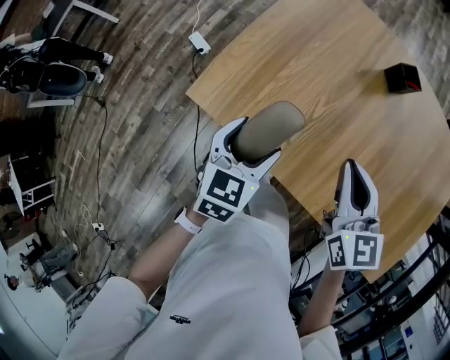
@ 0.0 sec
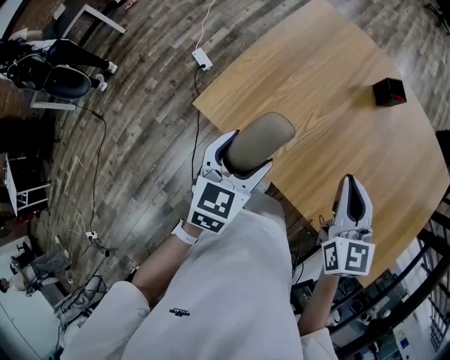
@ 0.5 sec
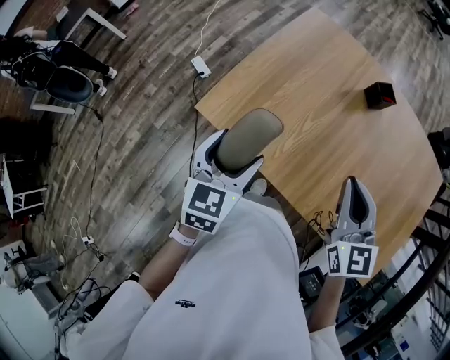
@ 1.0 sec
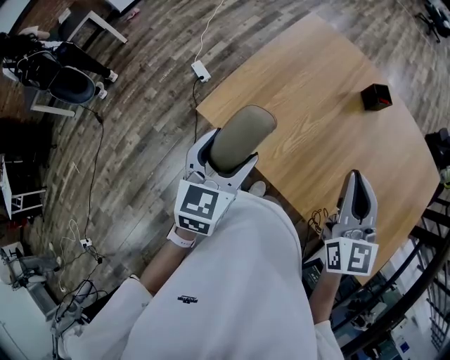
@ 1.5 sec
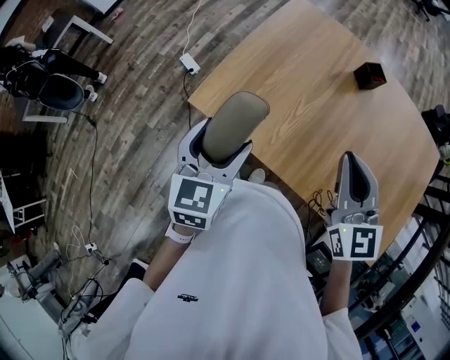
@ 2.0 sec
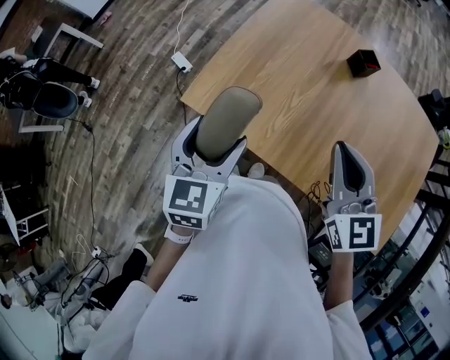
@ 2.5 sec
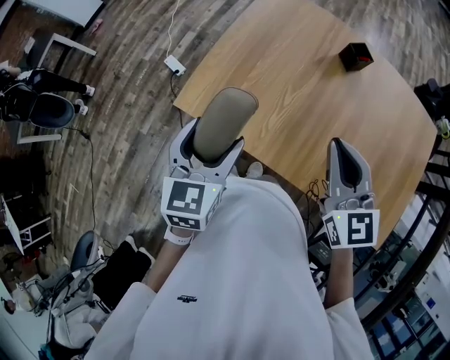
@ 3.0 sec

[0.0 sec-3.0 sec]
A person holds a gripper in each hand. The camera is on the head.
0.0 sec to 1.5 sec: The right gripper is displaced upward by roughly 10 cm. Meanwhile the left gripper moves upward and to the left, some 15 cm.
1.5 sec to 3.0 sec: The grippers make only small movements.

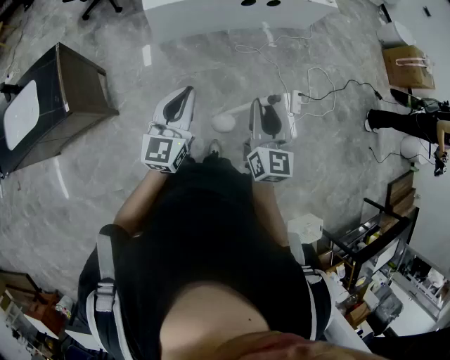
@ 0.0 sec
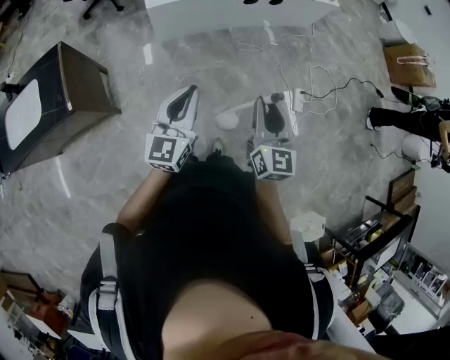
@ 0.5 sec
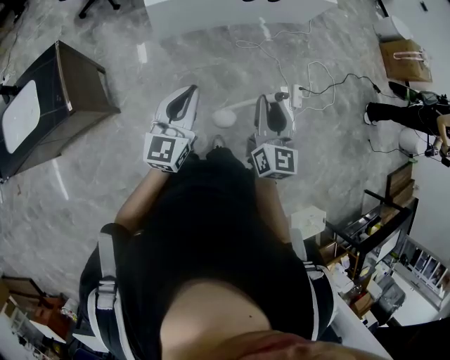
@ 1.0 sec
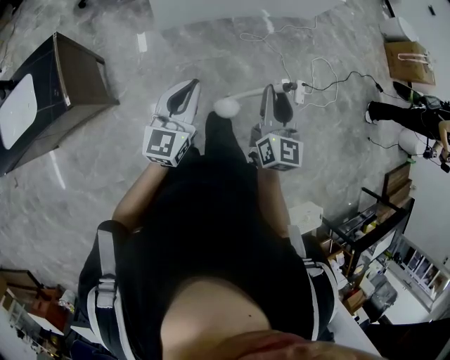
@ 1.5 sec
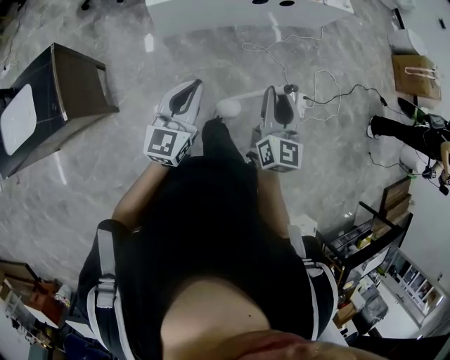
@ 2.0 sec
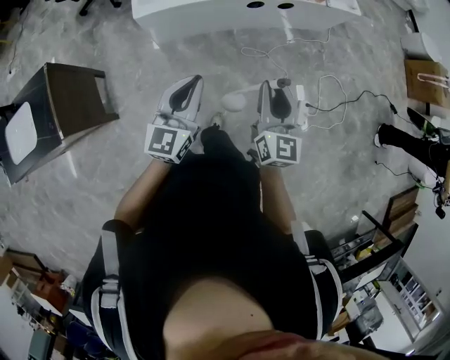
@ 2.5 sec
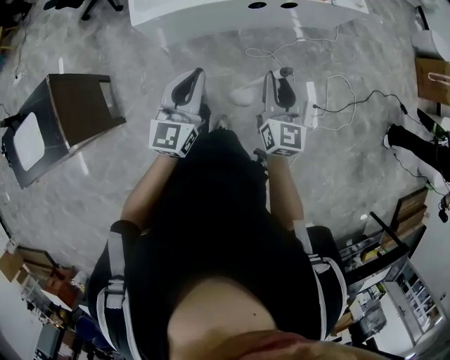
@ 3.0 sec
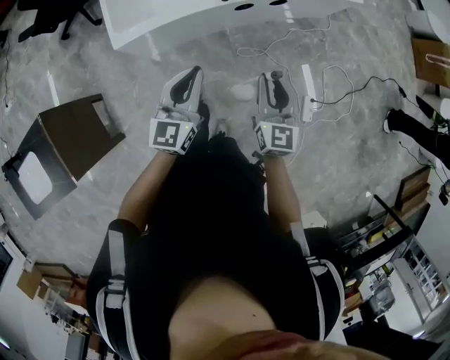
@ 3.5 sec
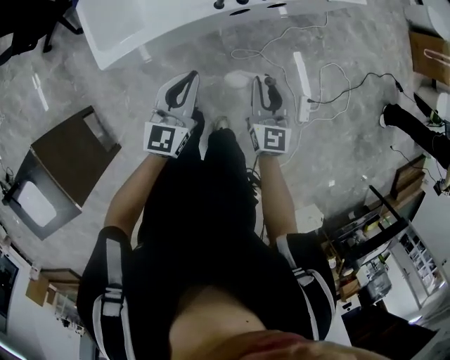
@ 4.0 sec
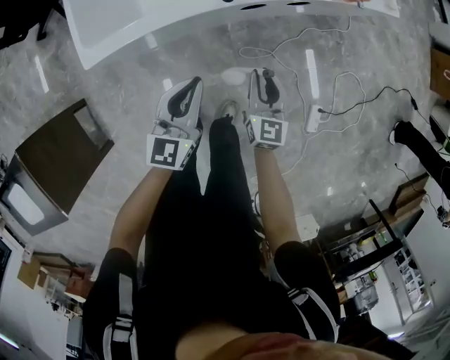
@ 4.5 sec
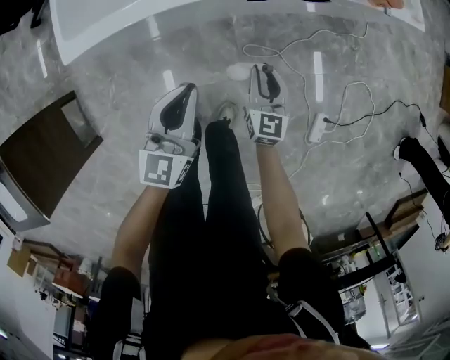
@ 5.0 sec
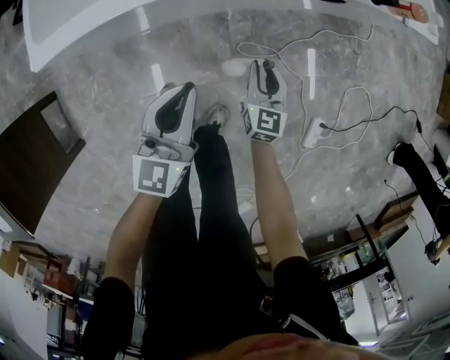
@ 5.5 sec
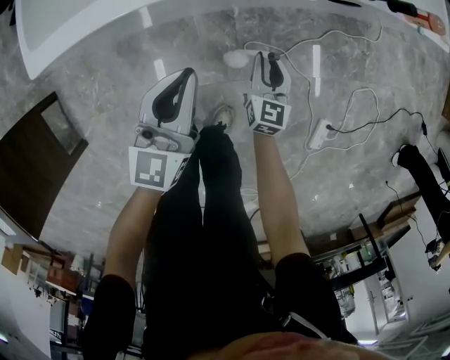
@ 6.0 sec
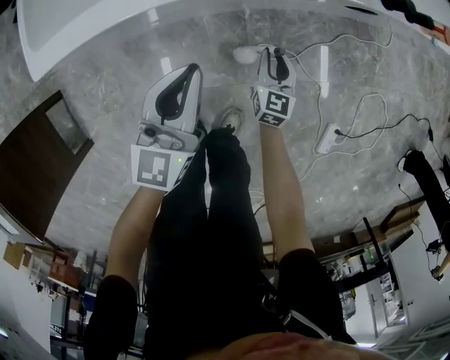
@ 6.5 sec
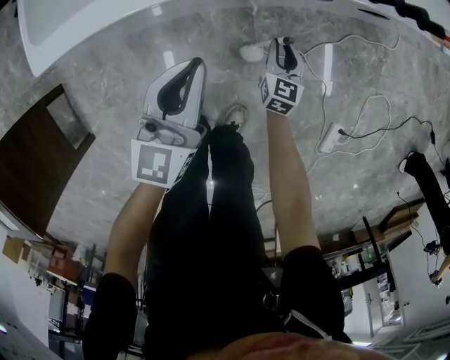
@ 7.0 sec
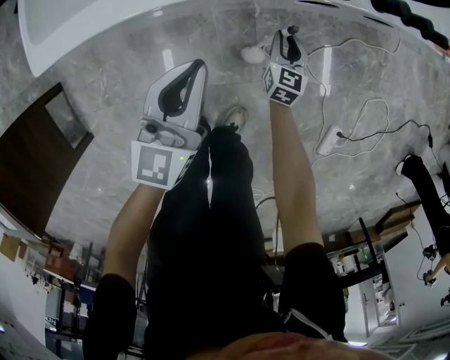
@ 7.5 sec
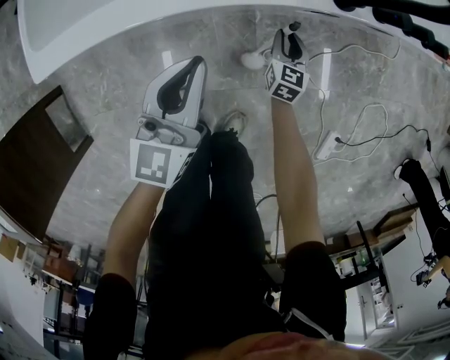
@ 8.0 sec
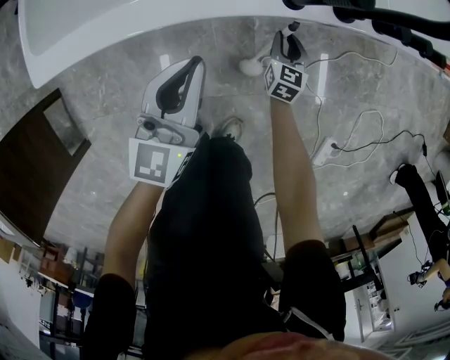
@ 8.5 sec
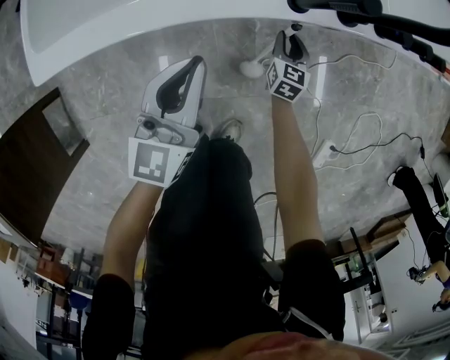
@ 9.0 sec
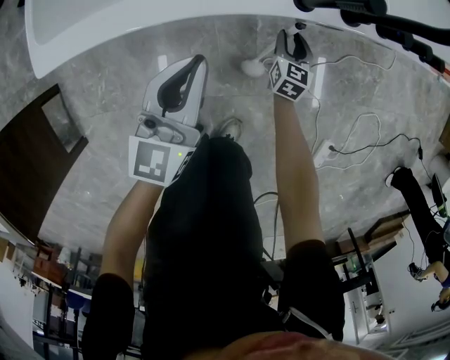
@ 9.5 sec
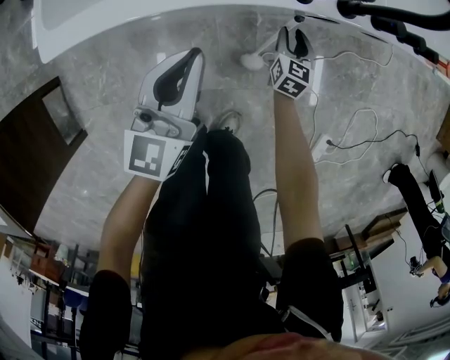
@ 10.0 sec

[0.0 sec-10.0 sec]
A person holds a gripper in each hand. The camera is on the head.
0.0 sec to 2.0 sec: Both grippers move forward, about 15 cm.
2.0 sec to 4.0 sec: The pair of grippers is taken forward, about 50 cm. The right gripper heads downward, covering roughly 15 cm.
4.0 sec to 6.0 sec: The two grippers go roughly 35 cm downward.
6.0 sec to 8.0 sec: The right gripper goes approximately 15 cm downward and forward, while the left gripper heads to the left and forward, covering approximately 10 cm.
8.0 sec to 10.0 sec: The grippers stay close to where they were, moving slightly.

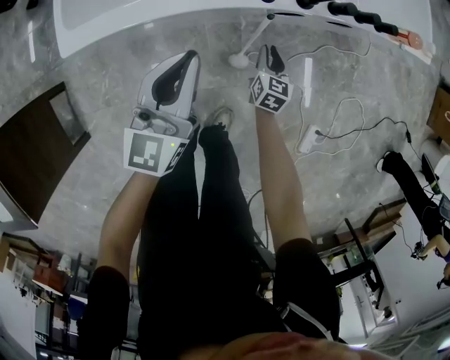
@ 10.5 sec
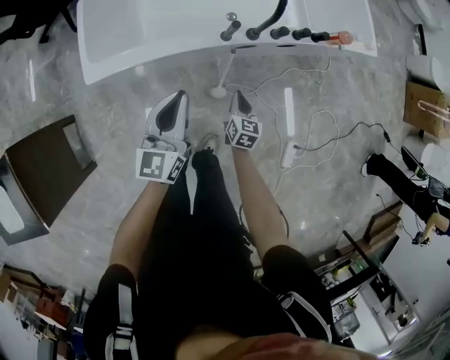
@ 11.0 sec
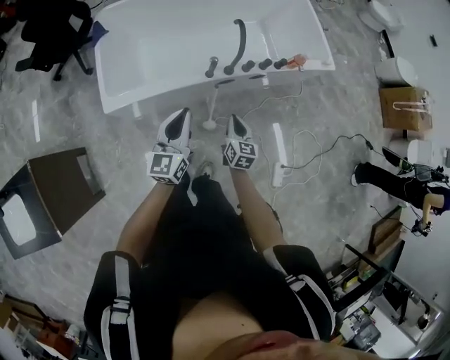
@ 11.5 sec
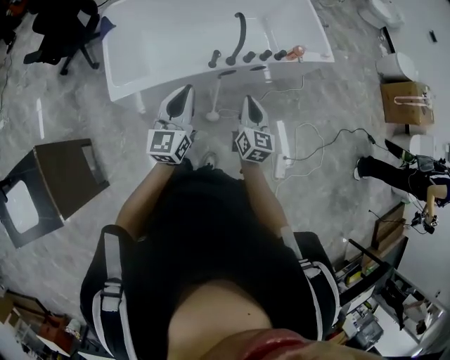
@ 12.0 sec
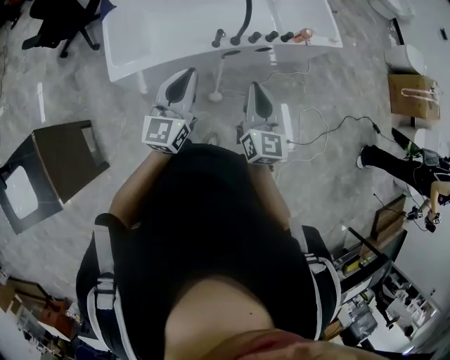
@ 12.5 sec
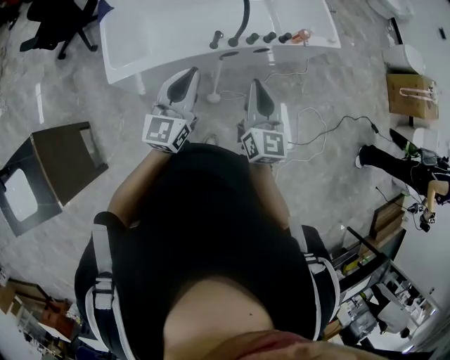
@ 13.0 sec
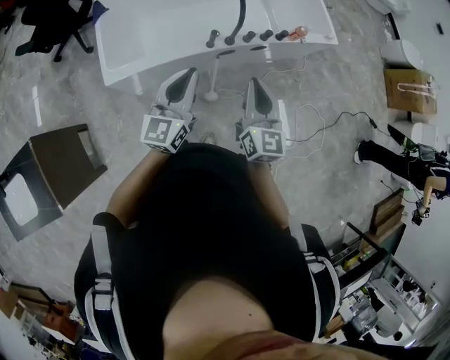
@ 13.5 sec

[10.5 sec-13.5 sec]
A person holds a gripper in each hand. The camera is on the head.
10.5 sec to 12.0 sec: The right gripper goes approximately 50 cm upward, and rotates some 20 degrees. Meanwhile the left gripper is displaced upward by roughly 30 cm.
12.0 sec to 13.5 sec: The right gripper goes roughly 10 cm upward.

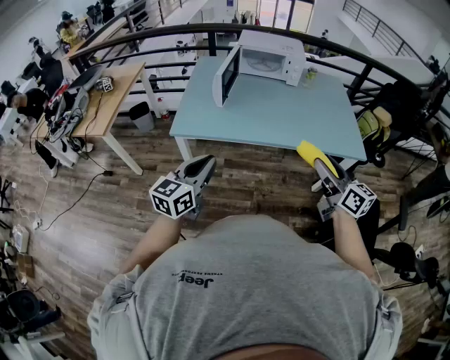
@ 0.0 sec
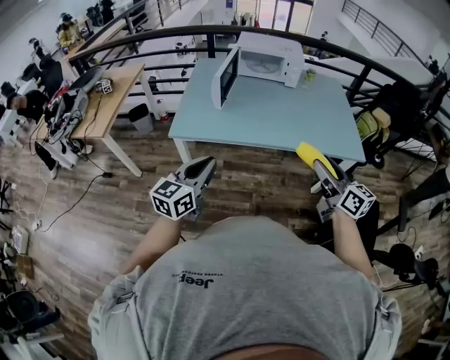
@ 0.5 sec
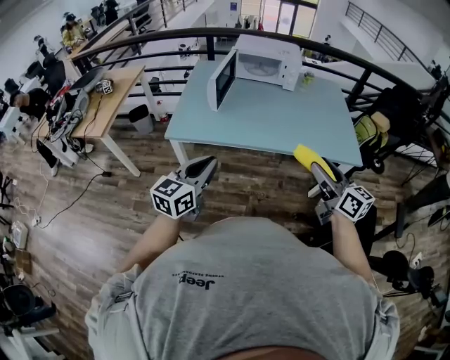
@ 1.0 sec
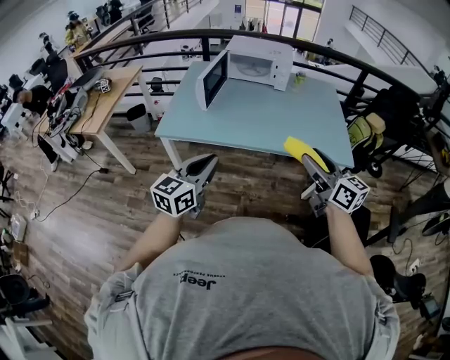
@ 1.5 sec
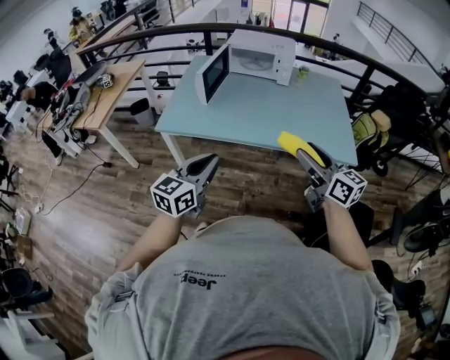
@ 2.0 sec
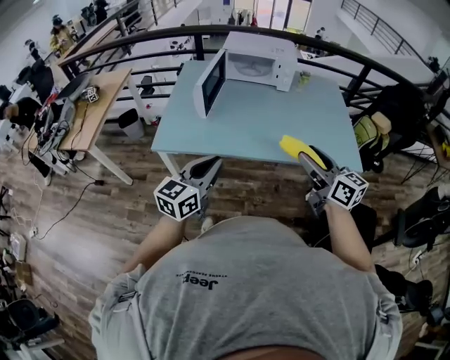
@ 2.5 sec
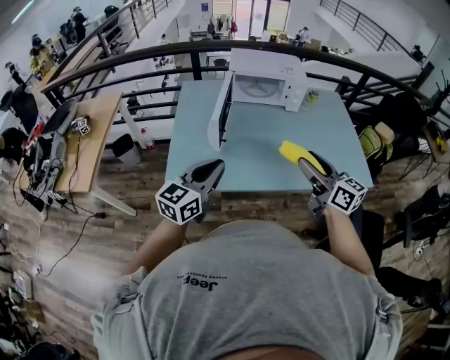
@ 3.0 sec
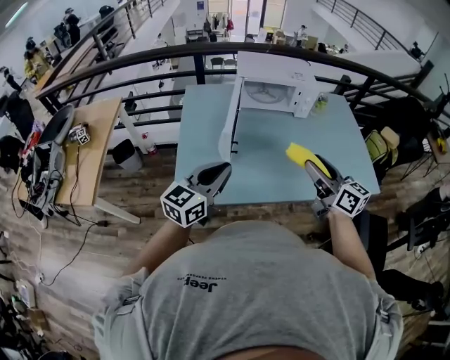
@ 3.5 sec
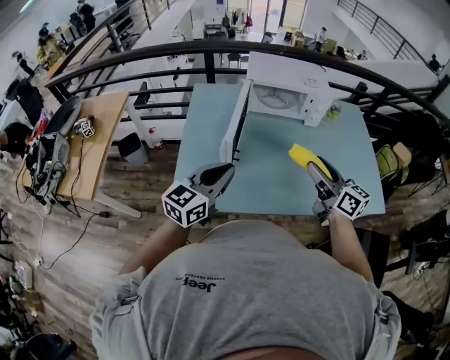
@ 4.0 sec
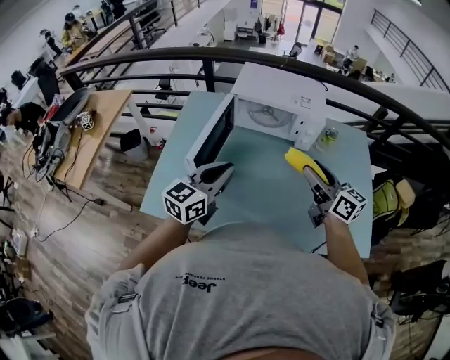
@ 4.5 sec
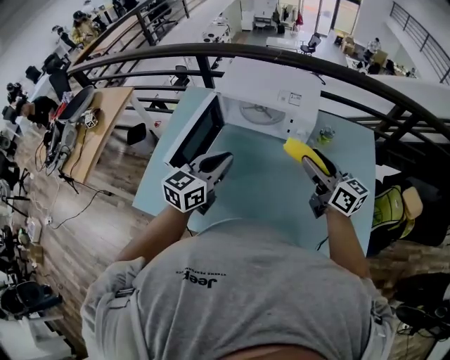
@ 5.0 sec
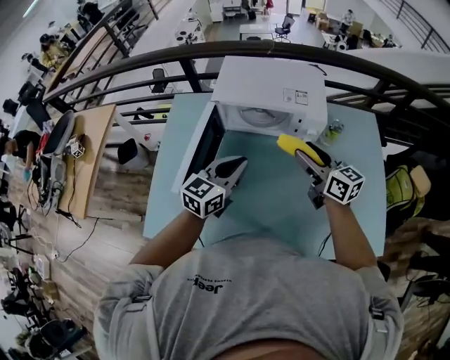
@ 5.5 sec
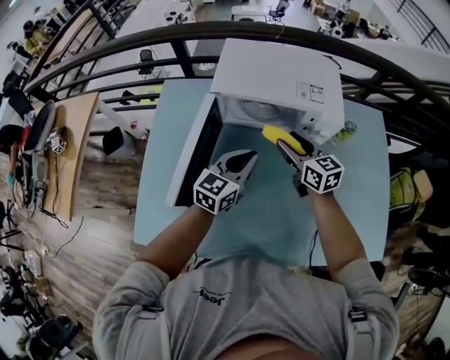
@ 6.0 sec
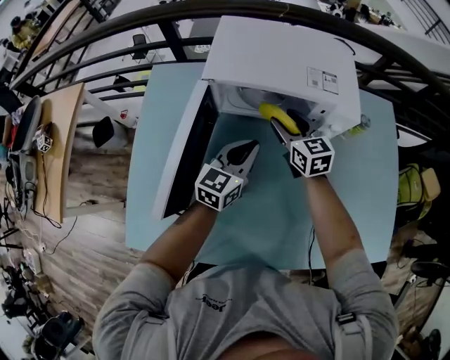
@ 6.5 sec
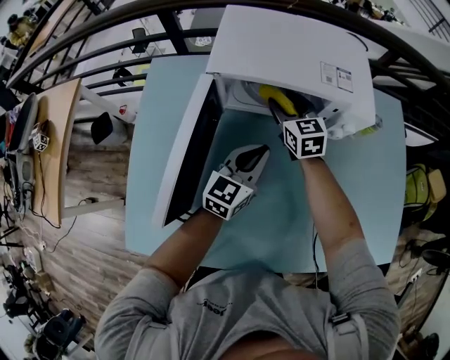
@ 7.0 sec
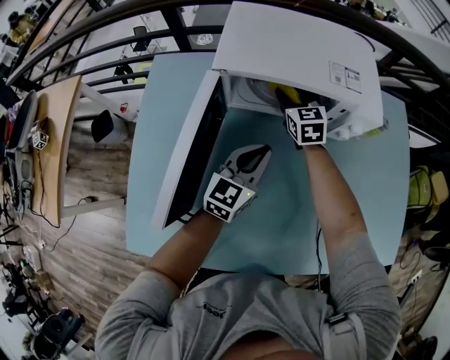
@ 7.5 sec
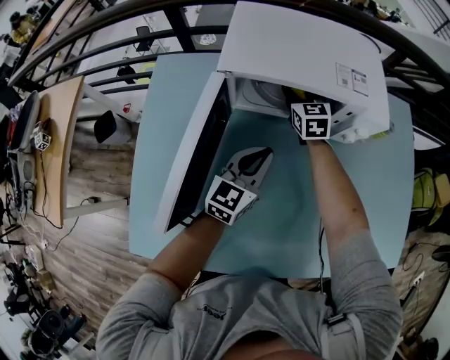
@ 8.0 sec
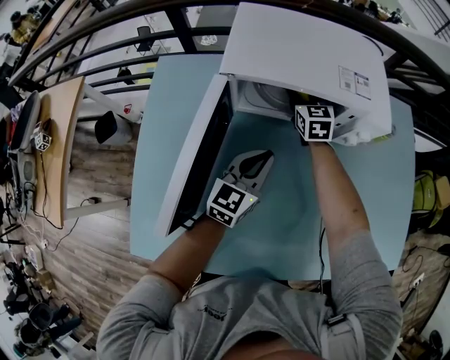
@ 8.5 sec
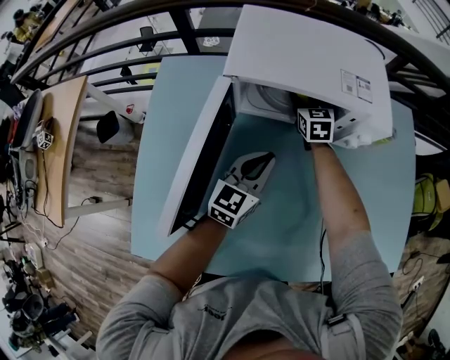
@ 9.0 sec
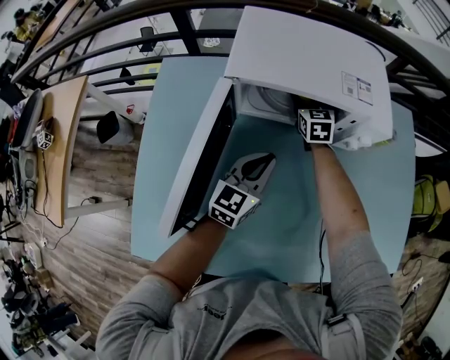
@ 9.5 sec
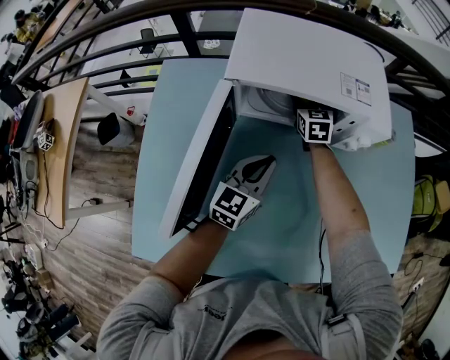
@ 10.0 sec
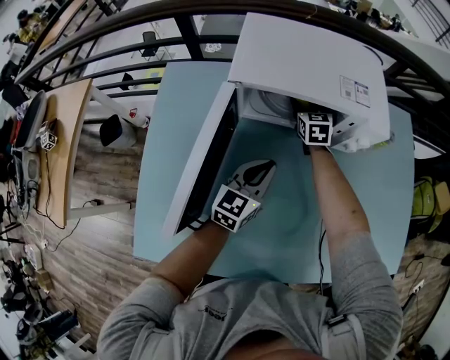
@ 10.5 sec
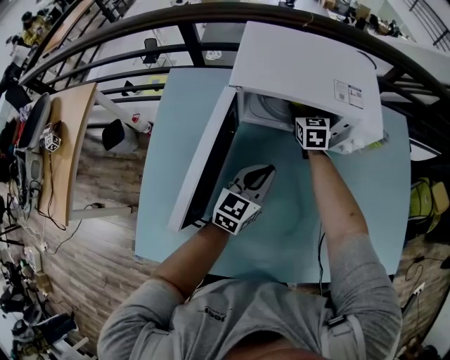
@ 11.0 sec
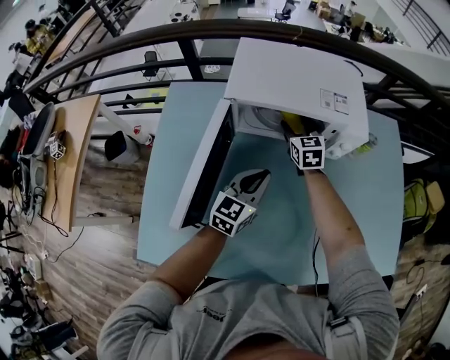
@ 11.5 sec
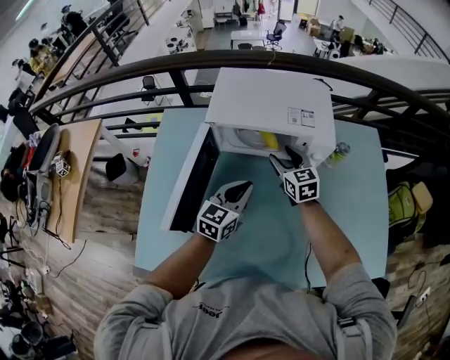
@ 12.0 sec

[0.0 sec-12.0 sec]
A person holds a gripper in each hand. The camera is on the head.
0.0 sec to 2.0 sec: The left gripper travels to the right by some 15 cm; the right gripper shifts about 10 cm to the right.
2.0 sec to 4.0 sec: Both grippers travel together forward and to the left, roughly 40 cm.
4.0 sec to 6.0 sec: The right gripper heads forward and downward, covering roughly 35 cm. Meanwhile the left gripper shifts some 40 cm forward, to the right and downward.
6.0 sec to 8.0 sec: The left gripper shifts about 10 cm downward; the right gripper shifts some 20 cm forward and downward, and swivels approximately 30 degrees.
8.0 sec to 10.0 sec: There are only small adjustments of the grippers.
10.0 sec to 12.0 sec: The right gripper goes some 15 cm backward and upward. Meanwhile the left gripper is displaced upward by about 5 cm.
